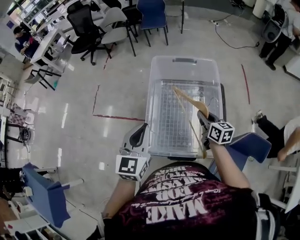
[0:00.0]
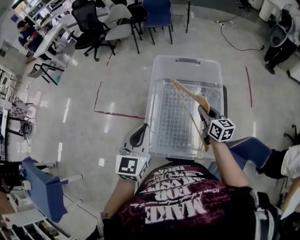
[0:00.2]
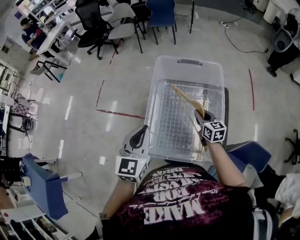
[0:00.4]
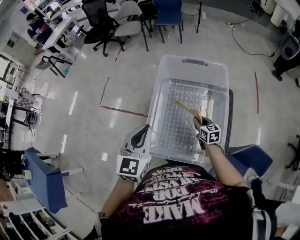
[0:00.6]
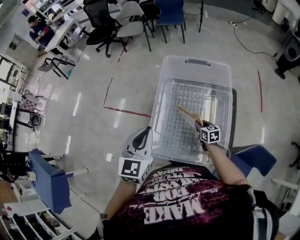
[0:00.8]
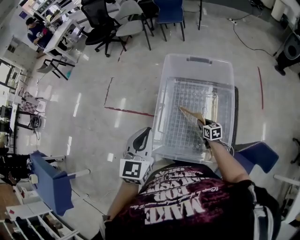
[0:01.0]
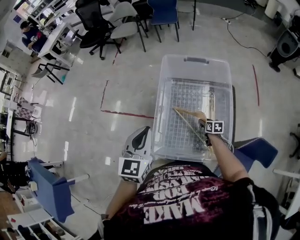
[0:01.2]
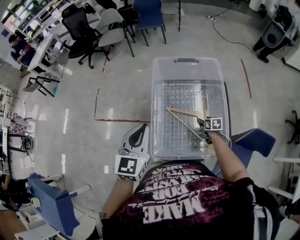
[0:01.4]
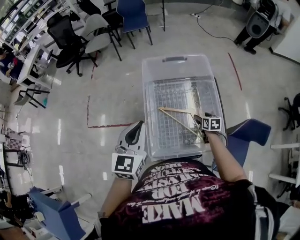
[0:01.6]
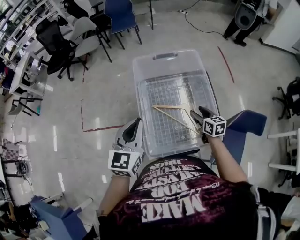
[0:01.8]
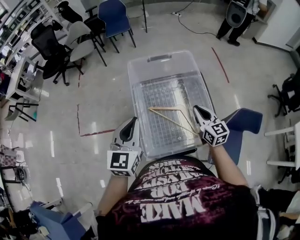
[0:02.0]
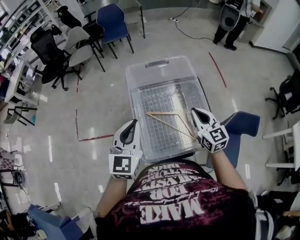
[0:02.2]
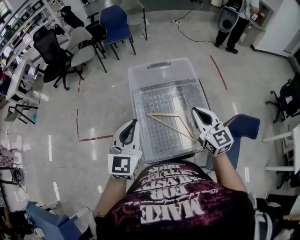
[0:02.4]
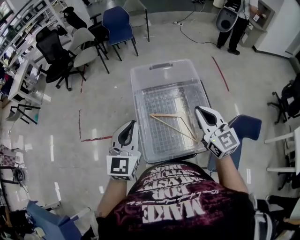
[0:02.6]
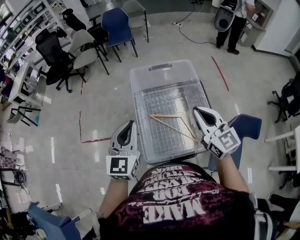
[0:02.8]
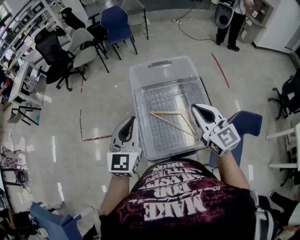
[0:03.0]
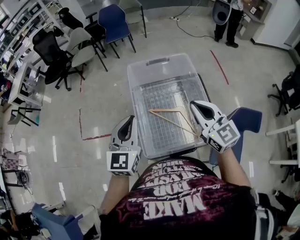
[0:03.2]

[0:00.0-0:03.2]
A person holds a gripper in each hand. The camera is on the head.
0:00.0 to 0:01.6: The left gripper shifts about 5 cm forward. The right gripper goes approximately 20 cm downward, changes its angle by approximately 30 degrees, and opens.
0:01.6 to 0:03.2: The right gripper heads upward, covering roughly 35 cm, angles its fingers upward, by roughly 40 degrees, and closes its fingers.

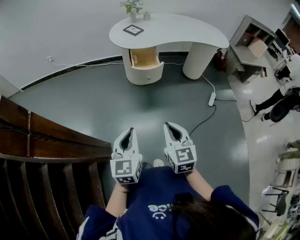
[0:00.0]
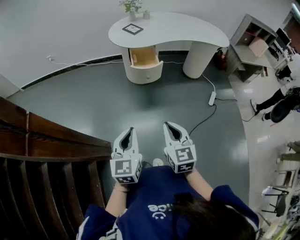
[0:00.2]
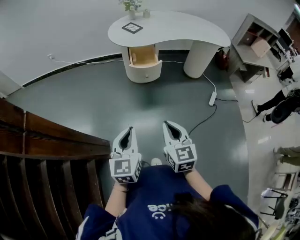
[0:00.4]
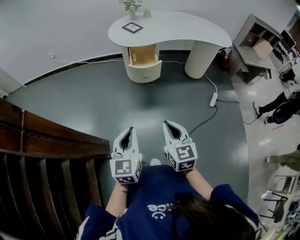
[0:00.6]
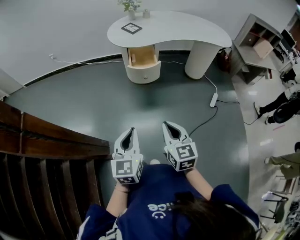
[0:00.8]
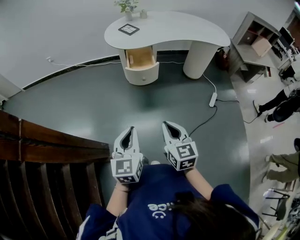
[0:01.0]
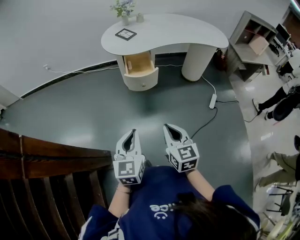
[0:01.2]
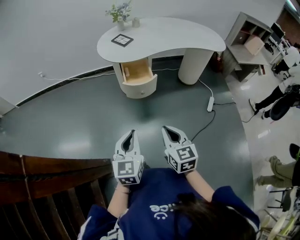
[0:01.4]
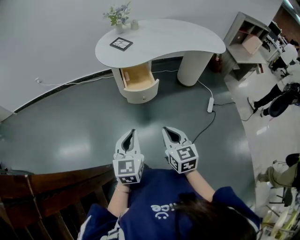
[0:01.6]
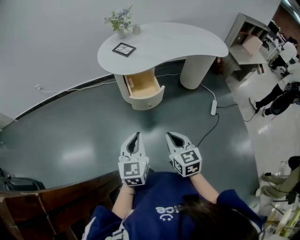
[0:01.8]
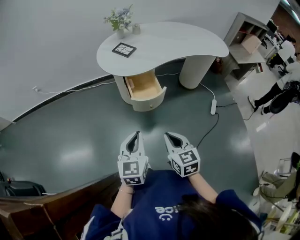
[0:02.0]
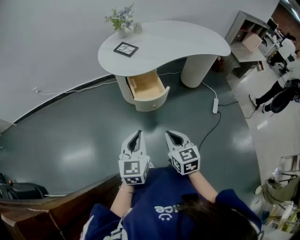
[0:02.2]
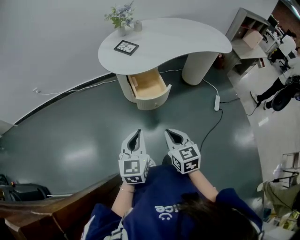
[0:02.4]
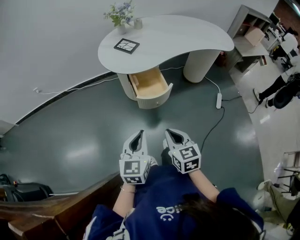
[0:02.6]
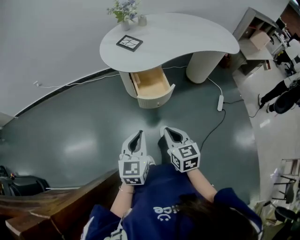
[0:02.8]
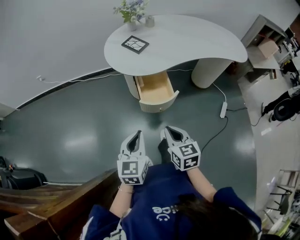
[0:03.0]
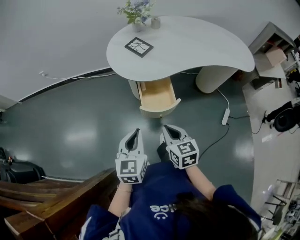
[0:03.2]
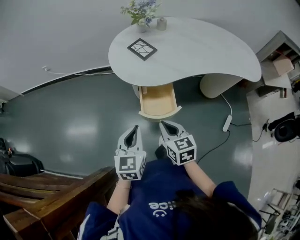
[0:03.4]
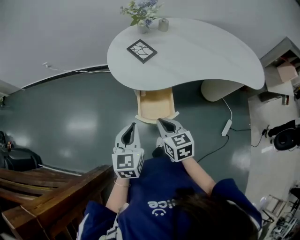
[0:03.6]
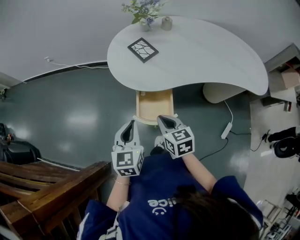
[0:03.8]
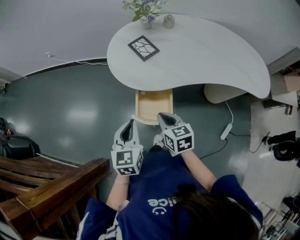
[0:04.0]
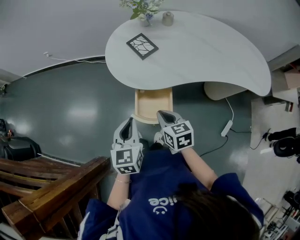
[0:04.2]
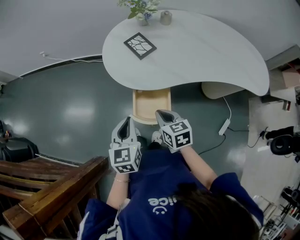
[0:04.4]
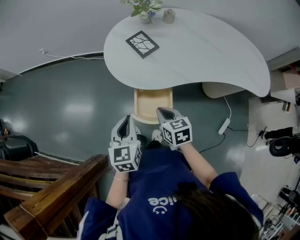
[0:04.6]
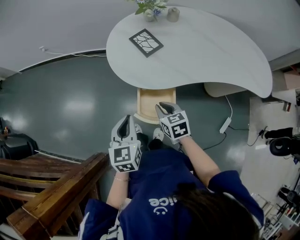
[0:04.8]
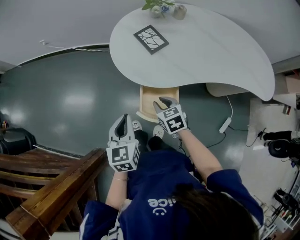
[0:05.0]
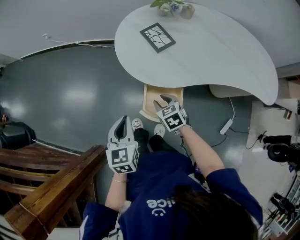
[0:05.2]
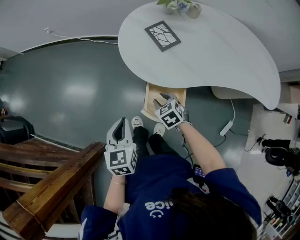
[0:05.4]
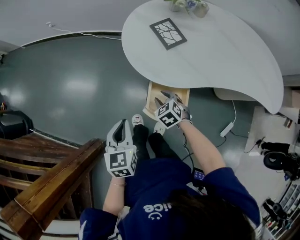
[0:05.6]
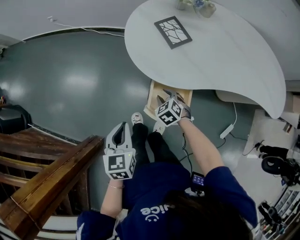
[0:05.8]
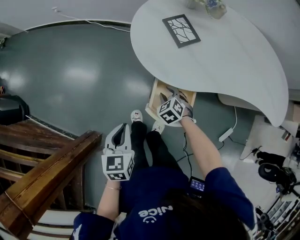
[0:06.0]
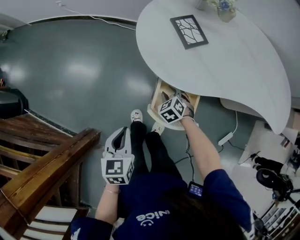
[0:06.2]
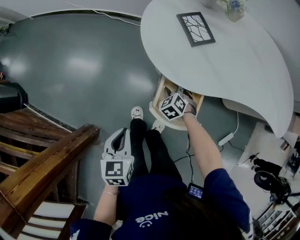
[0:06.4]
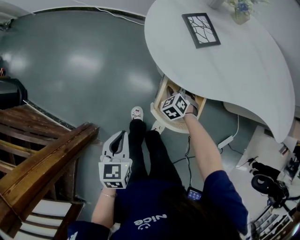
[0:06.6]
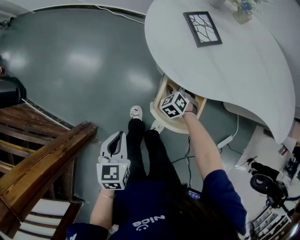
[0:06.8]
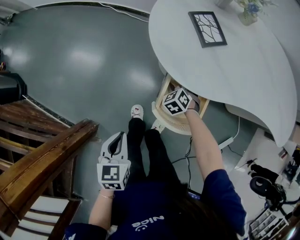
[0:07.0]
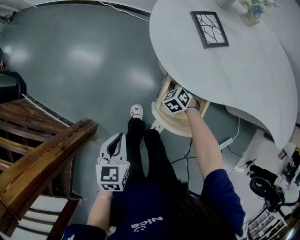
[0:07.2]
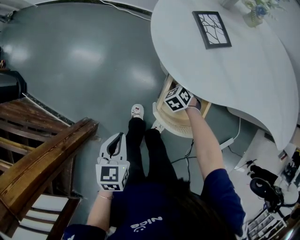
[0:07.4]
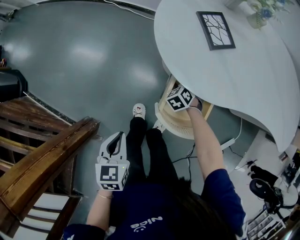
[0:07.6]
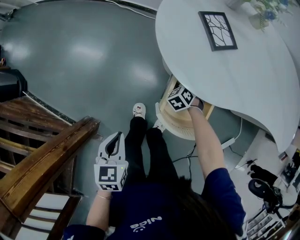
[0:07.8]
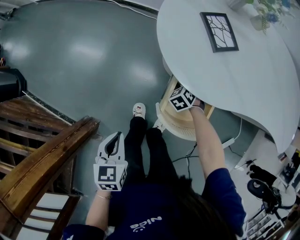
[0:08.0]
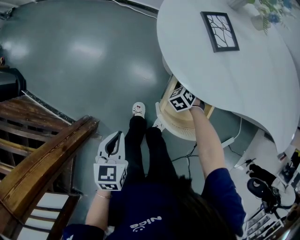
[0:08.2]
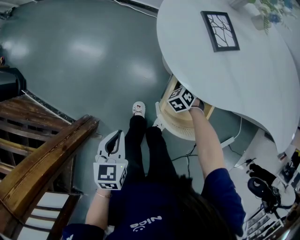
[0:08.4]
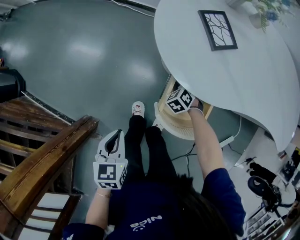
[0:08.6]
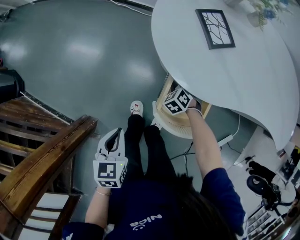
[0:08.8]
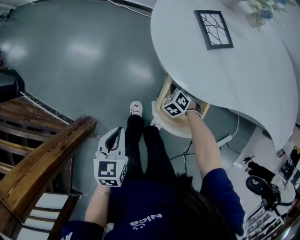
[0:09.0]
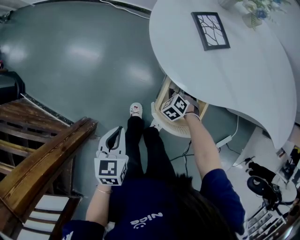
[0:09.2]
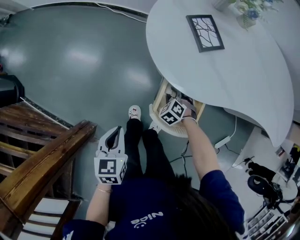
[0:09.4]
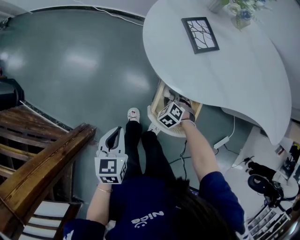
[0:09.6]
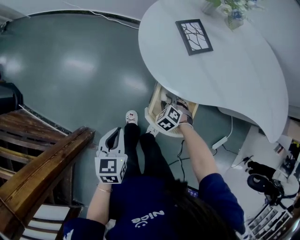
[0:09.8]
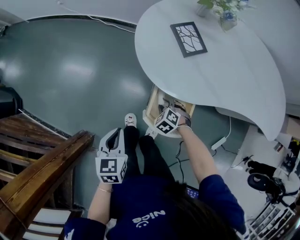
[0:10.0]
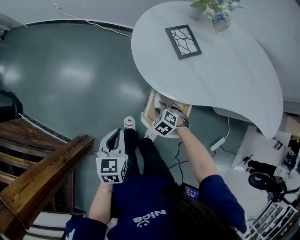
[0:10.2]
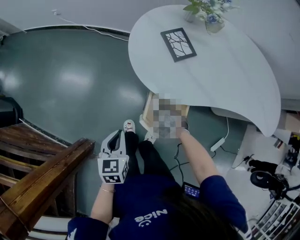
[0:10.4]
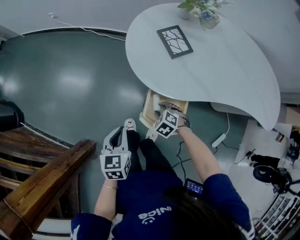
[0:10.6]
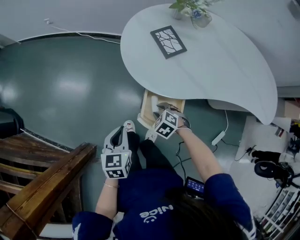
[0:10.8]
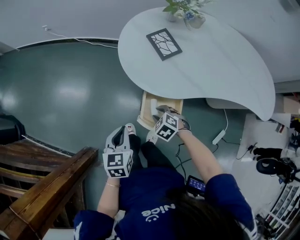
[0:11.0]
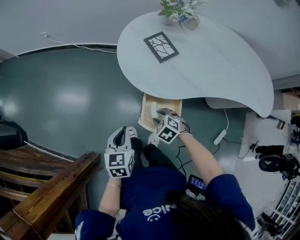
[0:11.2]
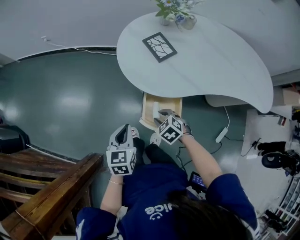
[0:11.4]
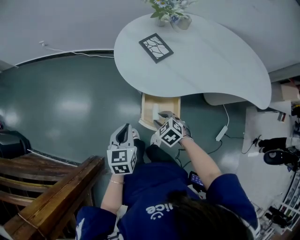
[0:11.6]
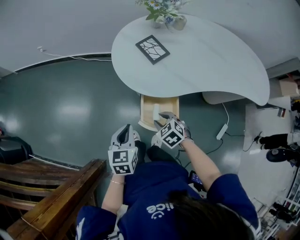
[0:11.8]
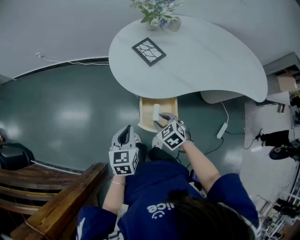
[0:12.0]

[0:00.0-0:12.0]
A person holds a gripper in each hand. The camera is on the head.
0:00.0 to 0:01.6: The grippers both shift forward by roughly 15 cm.
0:01.6 to 0:03.0: The right gripper shifts about 15 cm forward and to the left, while the left gripper heads forward, covering about 15 cm.
0:03.0 to 0:04.4: The two grippers go roughly 20 cm forward and to the right. The right gripper swivels some 20 degrees, while the left gripper changes its angle by roughly 20 degrees.
0:04.4 to 0:06.0: The right gripper is displaced downward and forward by about 20 cm, rolls counterclockwise, seen from behind, by roughly 40 degrees, and opens up, while the left gripper heads to the left and downward, covering approximately 15 cm.
0:06.0 to 0:07.6: The left gripper shifts some 5 cm downward, while the right gripper moves downward and forward, about 10 cm, and opens.
0:07.6 to 0:09.0: The right gripper closes its fingers.
0:09.0 to 0:10.4: The left gripper changes place by about 5 cm; the right gripper heads backward and upward, covering about 10 cm.
0:10.4 to 0:12.0: The right gripper travels upward by about 15 cm, and rotates roughly 30 degrees, while the left gripper moves to the right, approximately 5 cm.

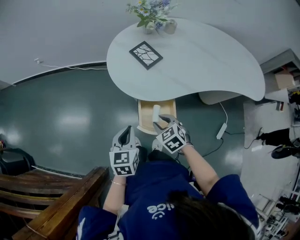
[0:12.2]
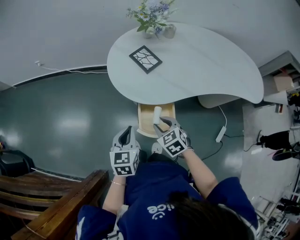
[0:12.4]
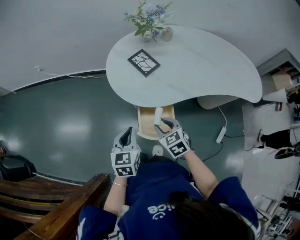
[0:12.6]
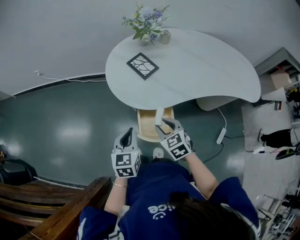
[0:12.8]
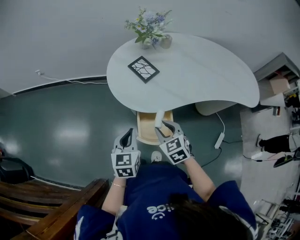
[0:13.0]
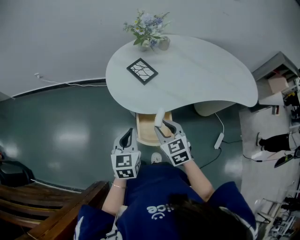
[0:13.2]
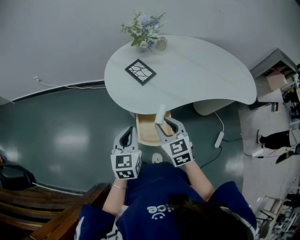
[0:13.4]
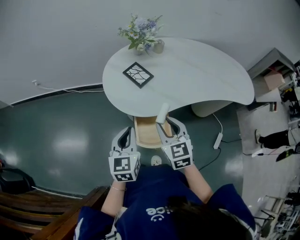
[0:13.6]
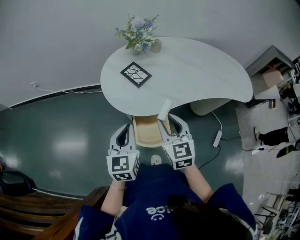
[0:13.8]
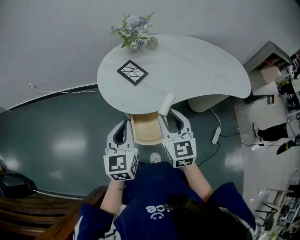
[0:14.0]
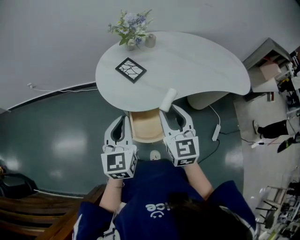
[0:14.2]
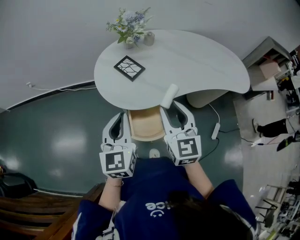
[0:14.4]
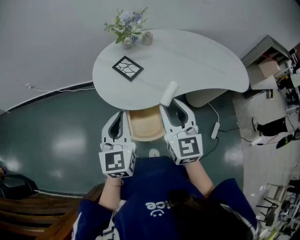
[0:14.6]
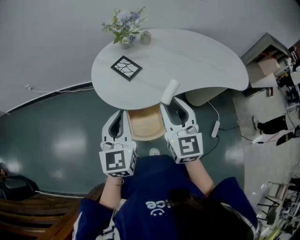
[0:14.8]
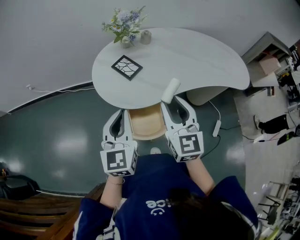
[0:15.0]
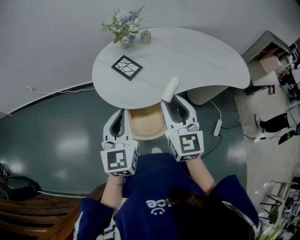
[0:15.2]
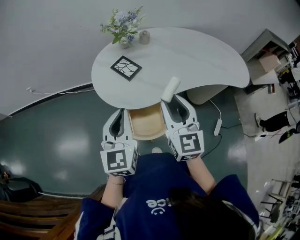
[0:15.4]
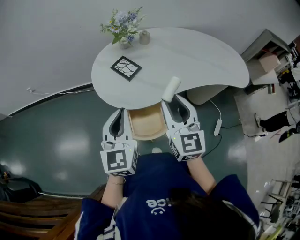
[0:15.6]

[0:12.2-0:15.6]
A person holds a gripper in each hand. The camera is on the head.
0:12.2 to 0:13.8: The left gripper heads upward, covering some 10 cm, while the right gripper heads upward, covering roughly 20 cm, and points its fingers approximately 30 degrees further upward.
0:13.8 to 0:15.6: Both grippers travel together upward, roughly 5 cm.

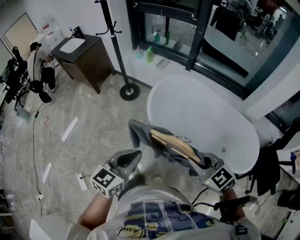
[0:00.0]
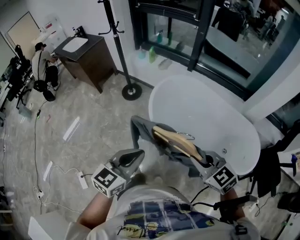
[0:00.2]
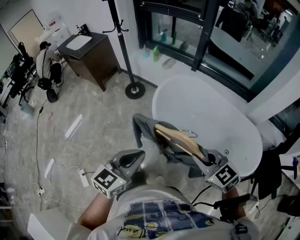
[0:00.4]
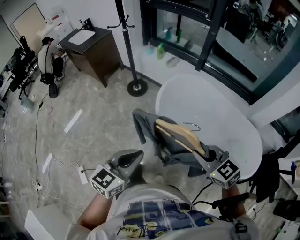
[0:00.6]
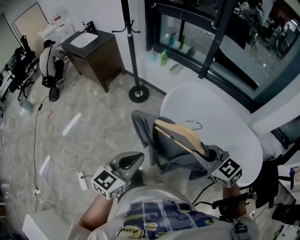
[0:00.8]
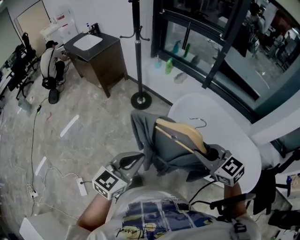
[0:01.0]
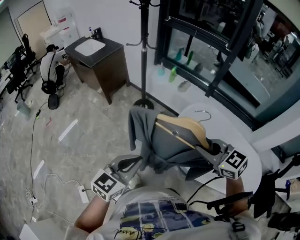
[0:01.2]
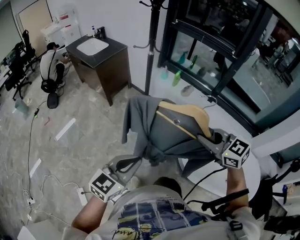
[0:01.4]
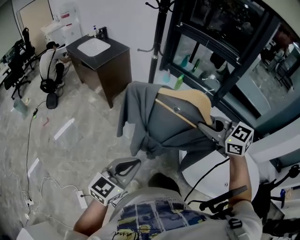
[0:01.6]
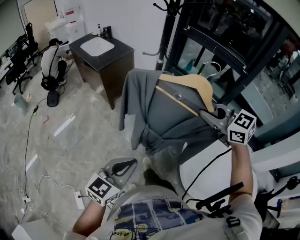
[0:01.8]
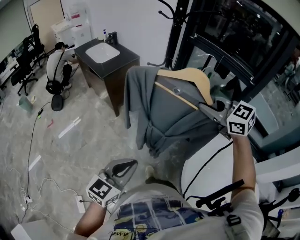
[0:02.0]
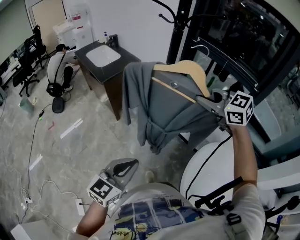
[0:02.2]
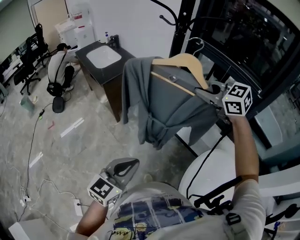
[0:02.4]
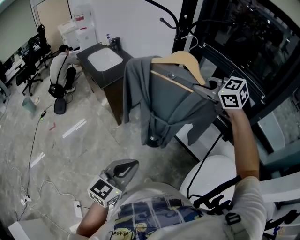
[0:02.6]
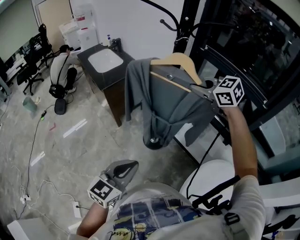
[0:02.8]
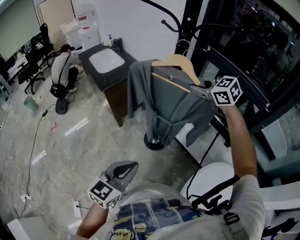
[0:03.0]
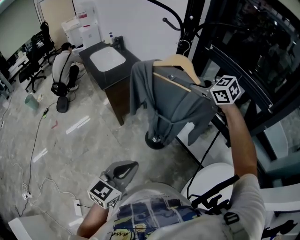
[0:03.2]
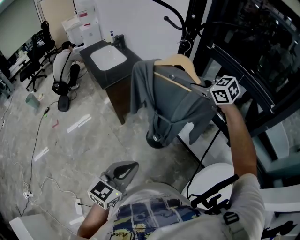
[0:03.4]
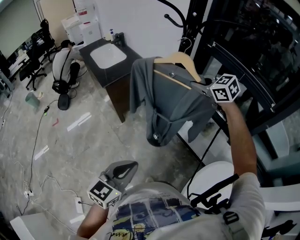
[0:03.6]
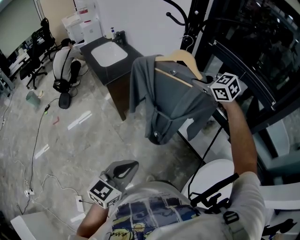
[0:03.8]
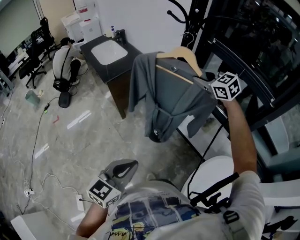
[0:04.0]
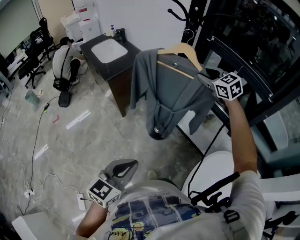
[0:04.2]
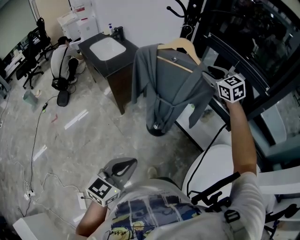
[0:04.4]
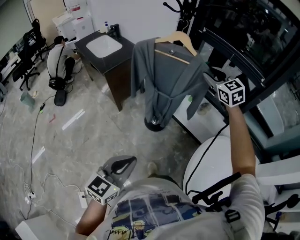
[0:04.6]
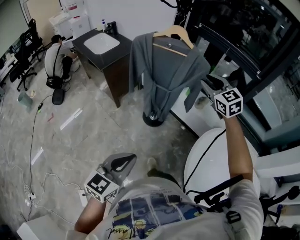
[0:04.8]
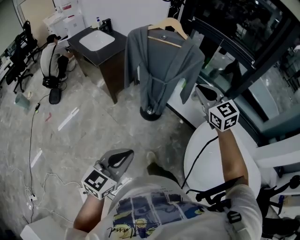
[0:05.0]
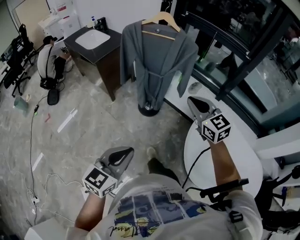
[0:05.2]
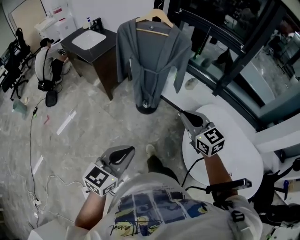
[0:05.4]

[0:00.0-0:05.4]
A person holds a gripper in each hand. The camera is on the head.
0:00.0 to 0:01.4: The right gripper travels forward and to the left by about 35 cm. The left gripper is displaced to the left and forward by some 25 cm.
0:01.4 to 0:02.8: The left gripper goes about 30 cm forward. Meanwhile the right gripper heads forward, covering some 50 cm.
0:02.8 to 0:04.0: The right gripper heads forward, covering roughly 5 cm.
0:04.0 to 0:05.4: The left gripper shifts some 20 cm backward; the right gripper shifts approximately 50 cm backward, and swivels about 30 degrees.
